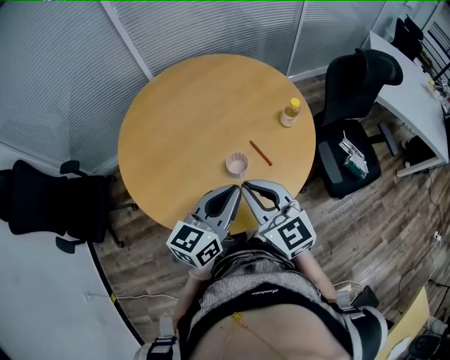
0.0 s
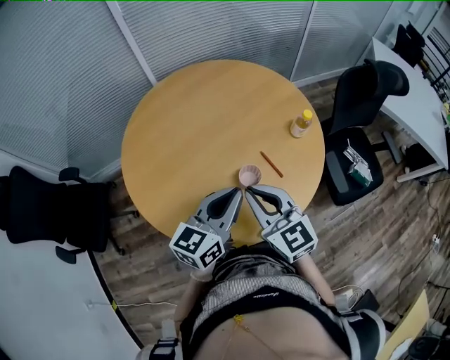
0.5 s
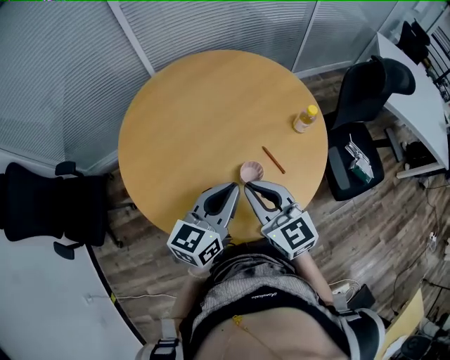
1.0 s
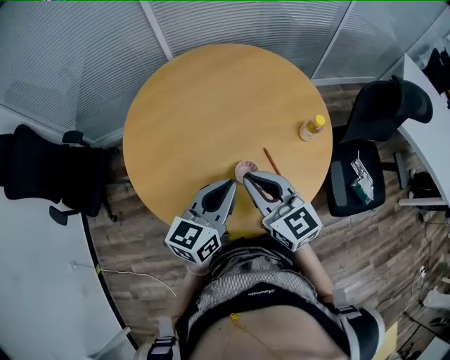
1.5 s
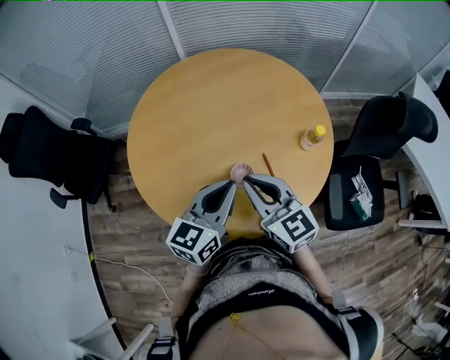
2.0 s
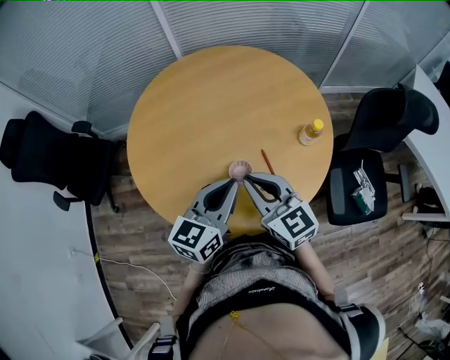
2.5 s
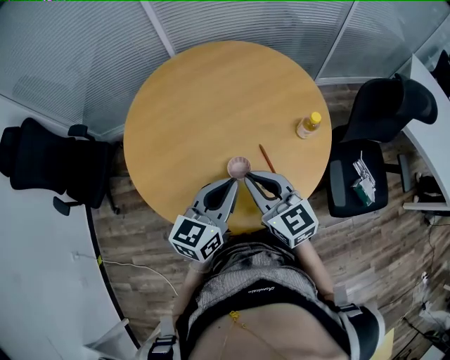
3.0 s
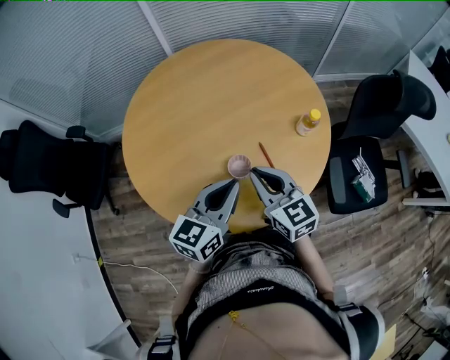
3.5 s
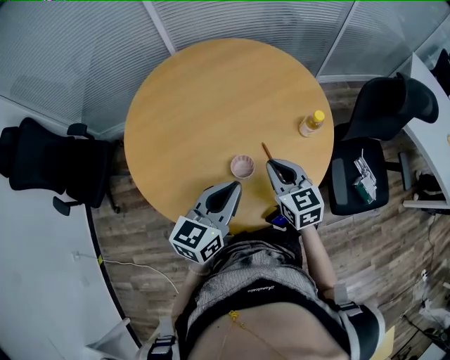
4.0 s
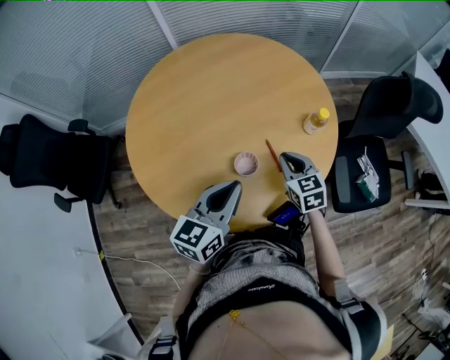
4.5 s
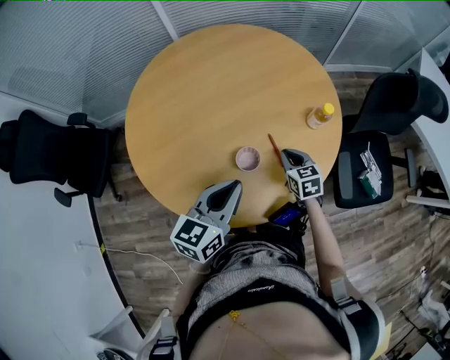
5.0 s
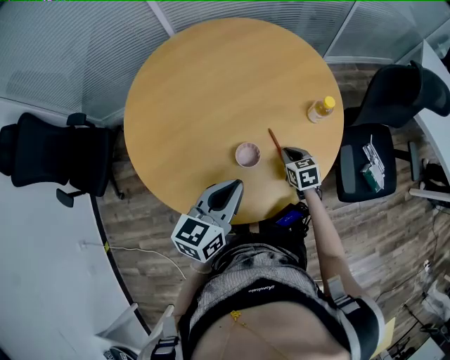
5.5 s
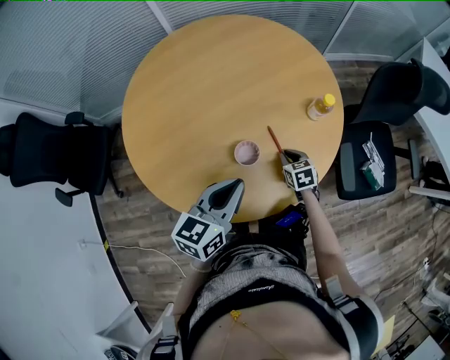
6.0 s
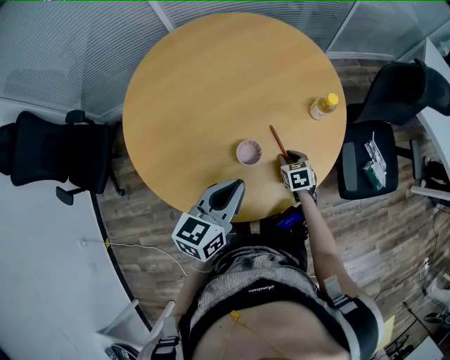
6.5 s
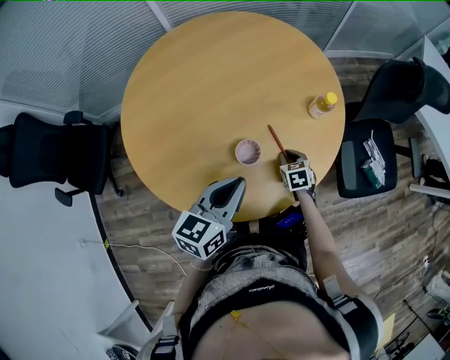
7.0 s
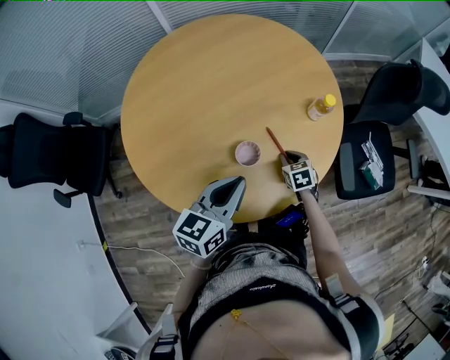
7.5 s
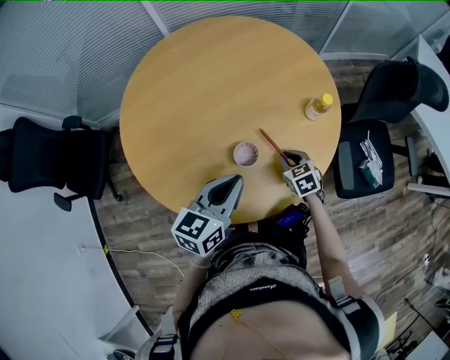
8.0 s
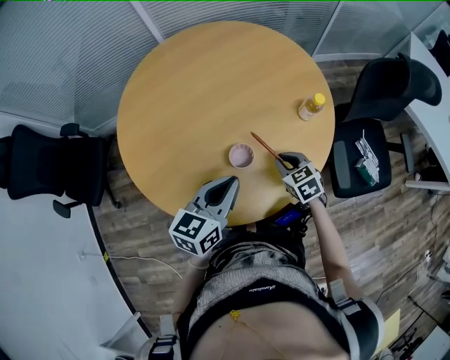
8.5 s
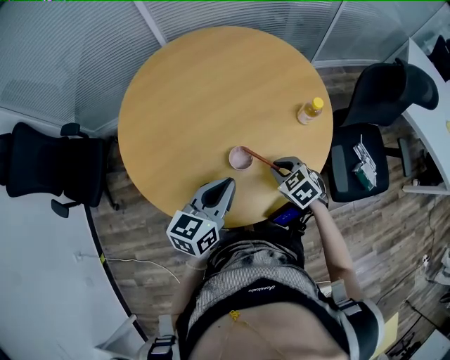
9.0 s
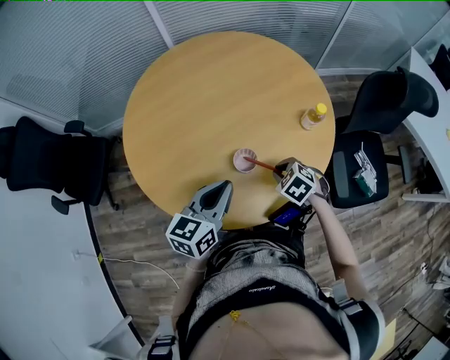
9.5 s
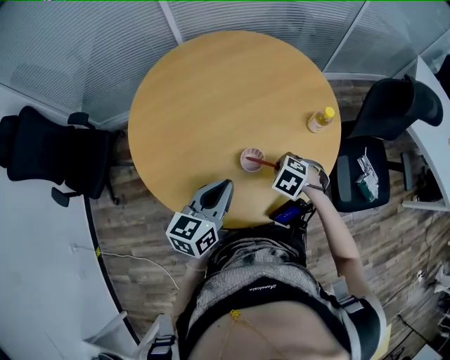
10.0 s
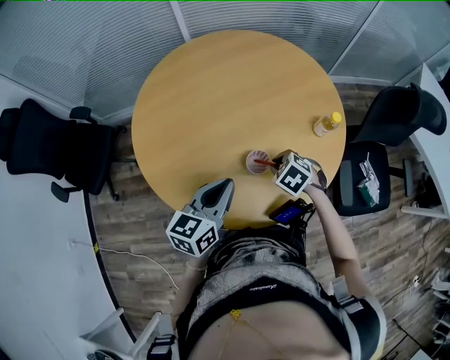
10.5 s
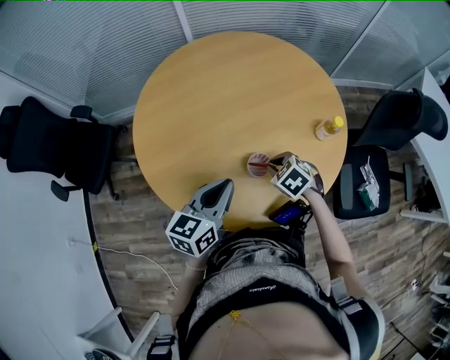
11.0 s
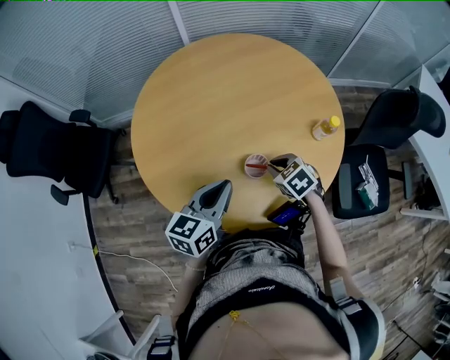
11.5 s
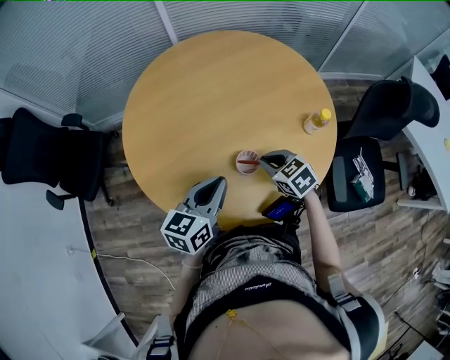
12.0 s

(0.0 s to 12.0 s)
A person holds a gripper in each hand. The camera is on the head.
0.0 s - 2.0 s: Both grippers move forward, roughly 5 cm.
2.0 s - 4.0 s: The right gripper travels downward and to the right by some 10 cm, and turns by about 20 degrees.
4.0 s - 6.0 s: The right gripper heads downward, covering about 25 cm, and rotates roughly 30 degrees.
6.0 s - 8.0 s: There are only small adjustments of the grippers.
8.0 s - 10.0 s: The right gripper goes approximately 5 cm upward, and rotates about 40 degrees, while the left gripper moves some 5 cm.
10.0 s - 12.0 s: The right gripper ends up about 5 cm from where it was, and turns by some 30 degrees.

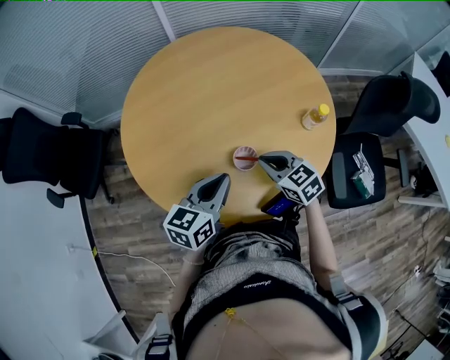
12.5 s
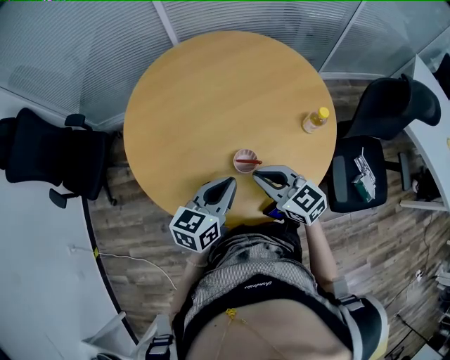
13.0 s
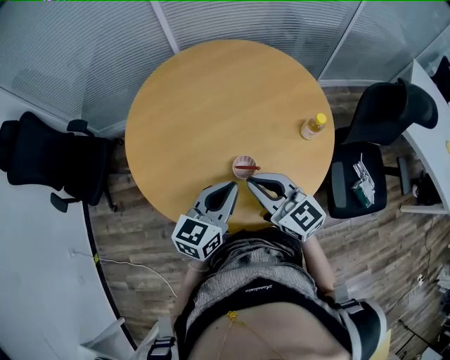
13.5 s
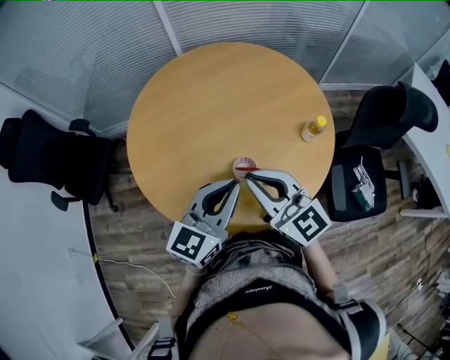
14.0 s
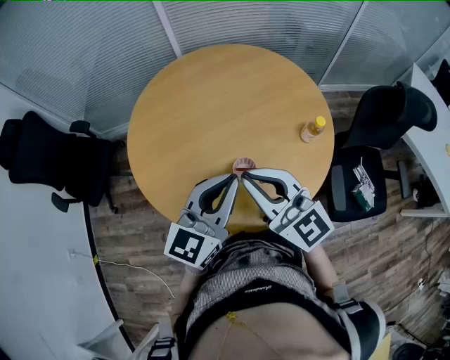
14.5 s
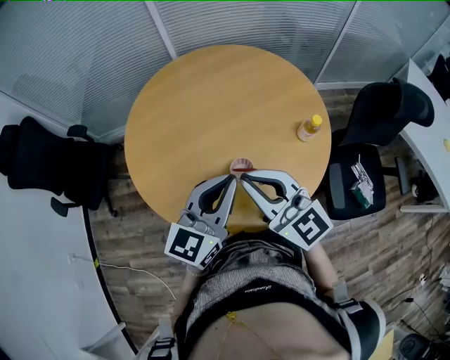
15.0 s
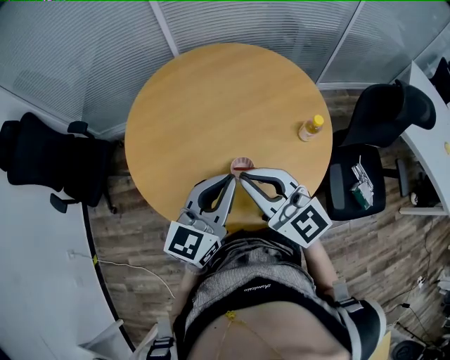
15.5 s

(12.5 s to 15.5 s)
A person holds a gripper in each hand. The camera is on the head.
12.5 s - 14.0 s: The right gripper shifts some 20 cm upward, and angles its fingers upward, by roughly 30 degrees; the left gripper heads upward, covering some 10 cm, and turns by some 20 degrees.
14.0 s - 15.5 s: The grippers stay close to where they were, moving slightly.

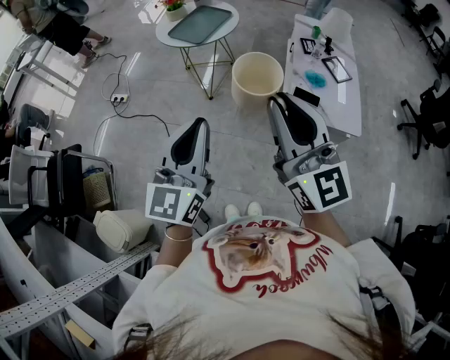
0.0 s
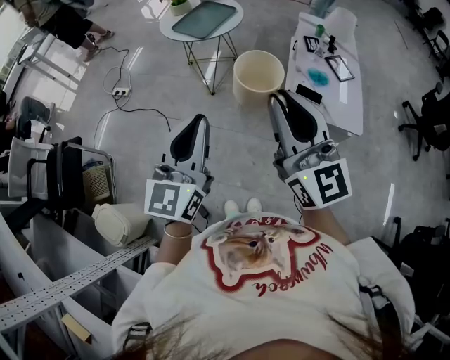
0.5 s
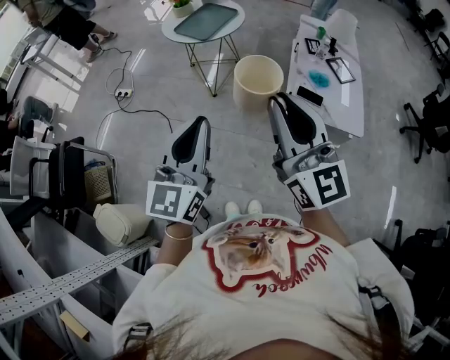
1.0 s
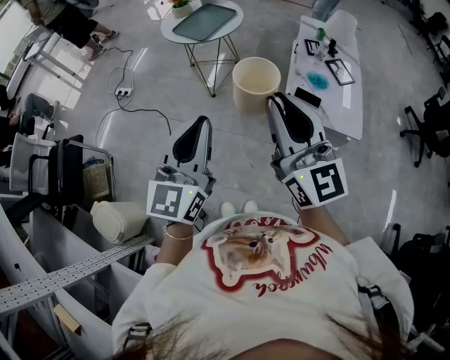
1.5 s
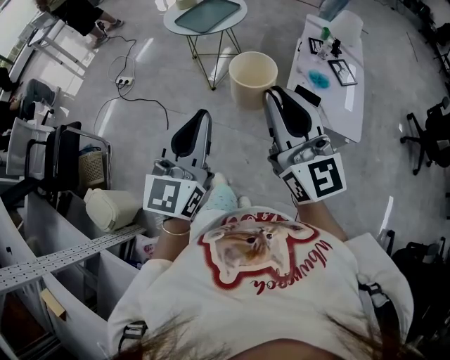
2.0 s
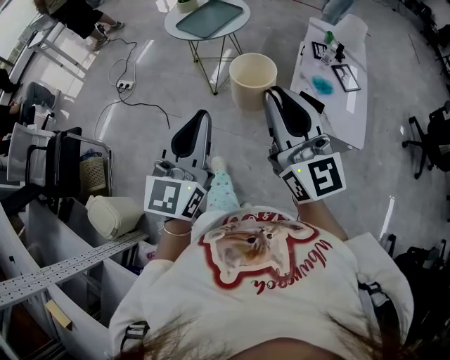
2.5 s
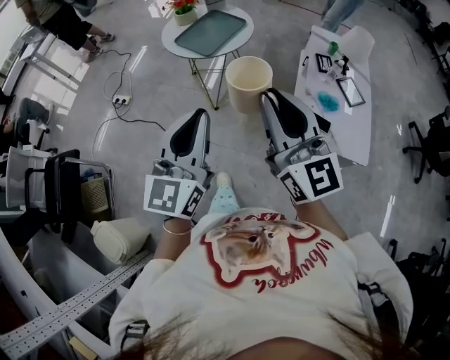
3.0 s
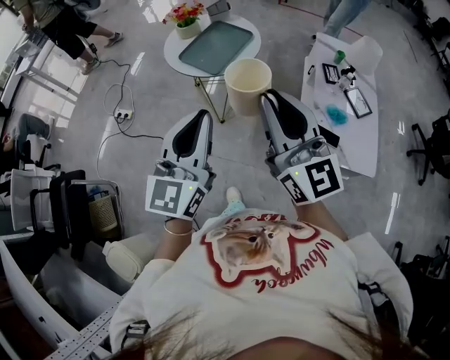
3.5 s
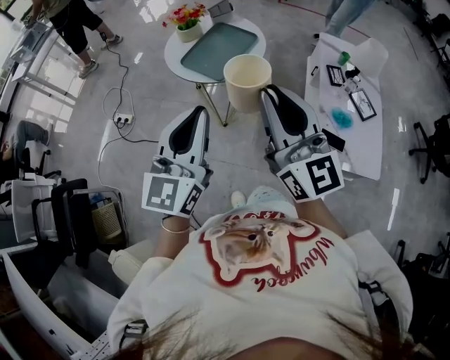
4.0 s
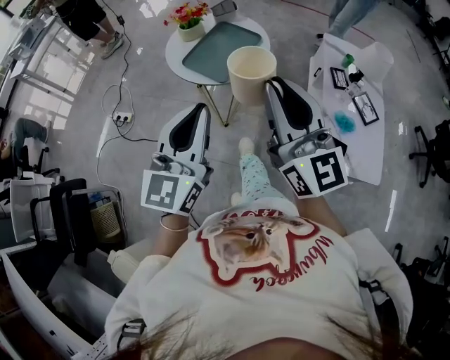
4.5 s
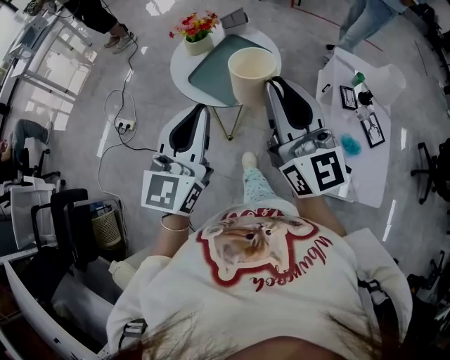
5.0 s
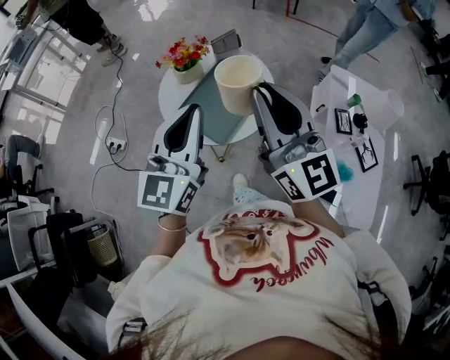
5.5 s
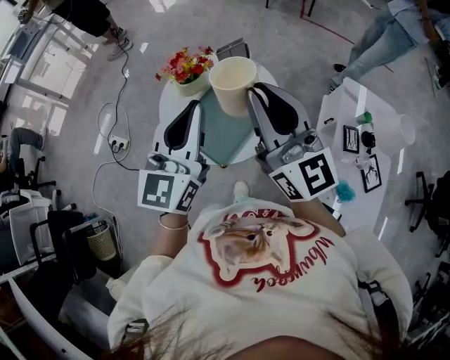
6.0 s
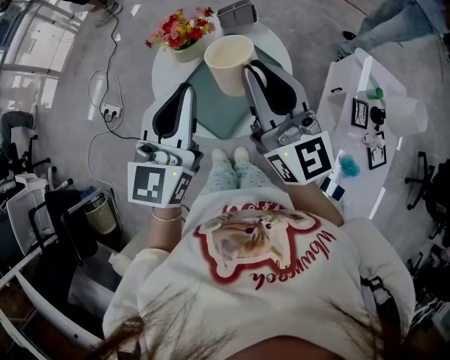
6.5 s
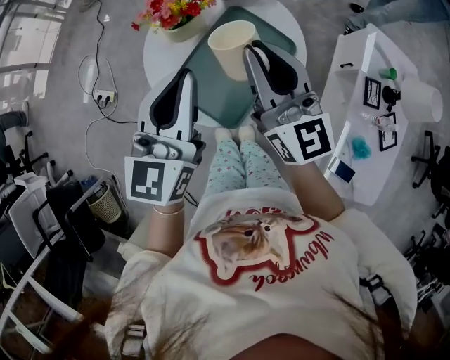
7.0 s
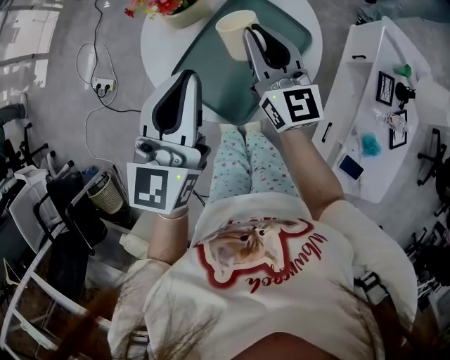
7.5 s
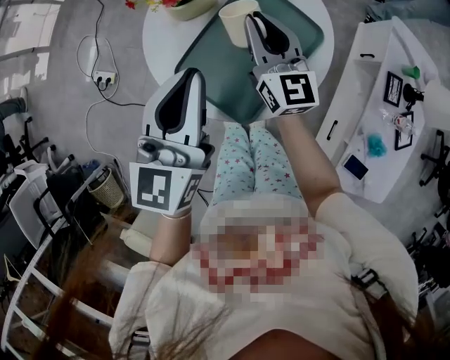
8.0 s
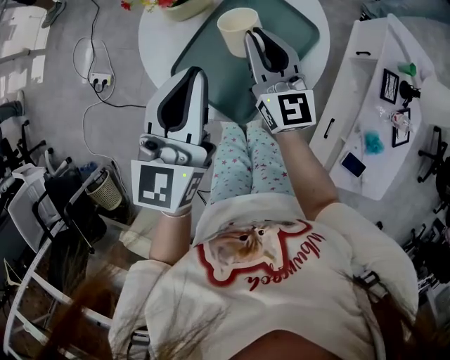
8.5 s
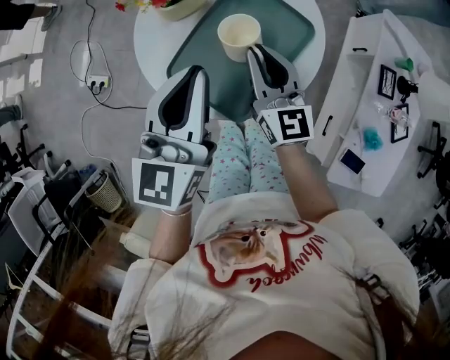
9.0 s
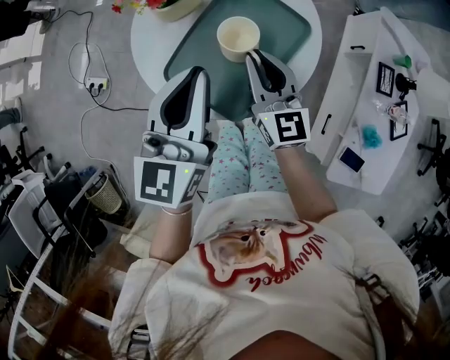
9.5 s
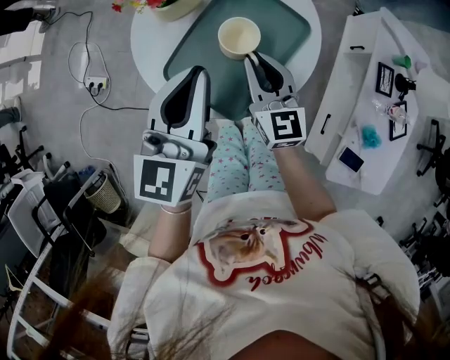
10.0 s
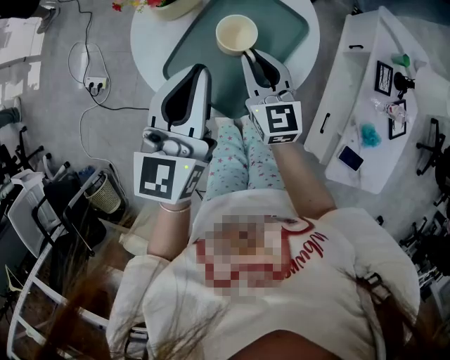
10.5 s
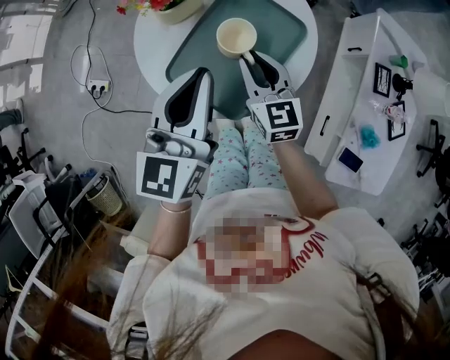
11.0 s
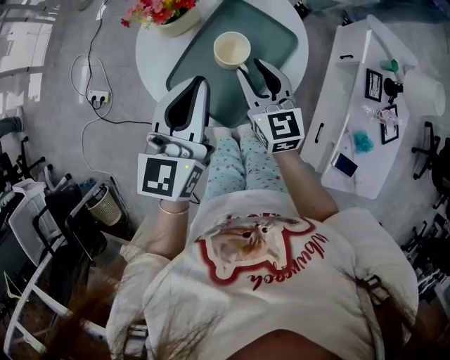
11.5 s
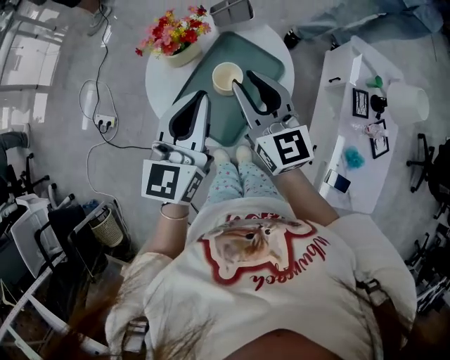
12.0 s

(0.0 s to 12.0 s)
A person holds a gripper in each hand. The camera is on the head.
0.0 s - 2.0 s: The left gripper changes place by roughly 5 cm.
2.0 s - 4.0 s: The grippers both shift forward by about 30 cm.
4.0 s - 6.0 s: Both grippers travel together forward, approximately 40 cm.
6.0 s - 8.0 s: The left gripper heads downward, covering some 15 cm. The right gripper moves downward and forward, approximately 30 cm.
8.0 s - 10.0 s: The right gripper moves backward, roughly 10 cm.
10.0 s - 12.0 s: The right gripper is displaced upward by about 15 cm; the left gripper is displaced upward by some 5 cm.
